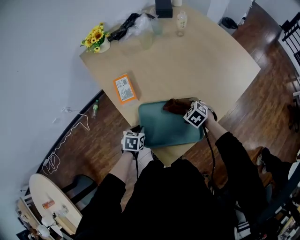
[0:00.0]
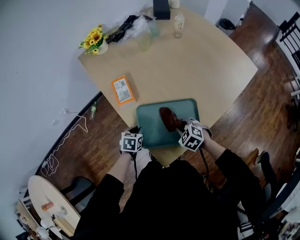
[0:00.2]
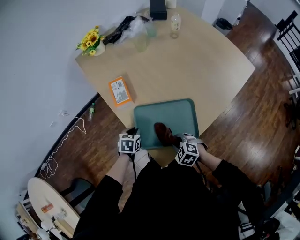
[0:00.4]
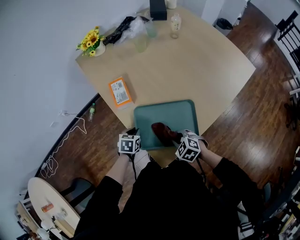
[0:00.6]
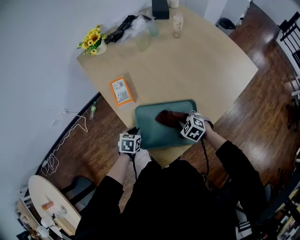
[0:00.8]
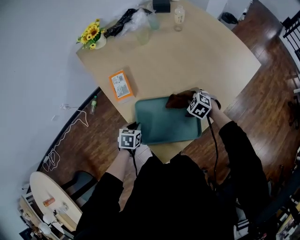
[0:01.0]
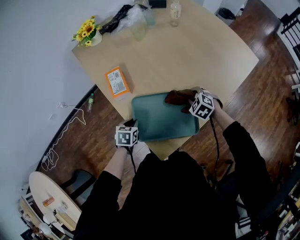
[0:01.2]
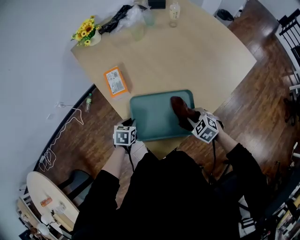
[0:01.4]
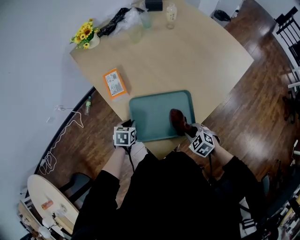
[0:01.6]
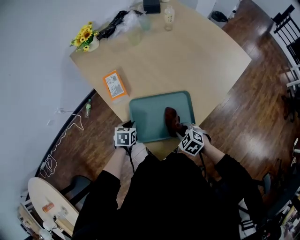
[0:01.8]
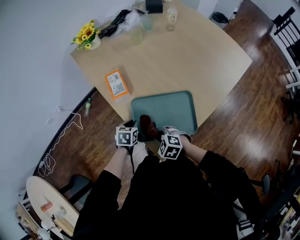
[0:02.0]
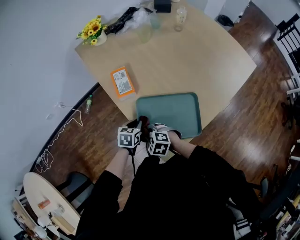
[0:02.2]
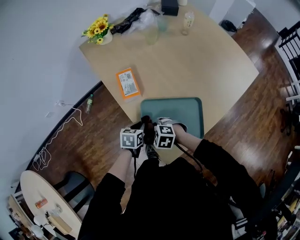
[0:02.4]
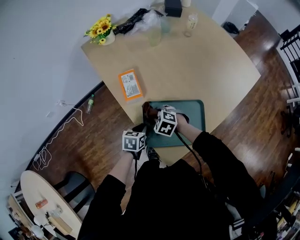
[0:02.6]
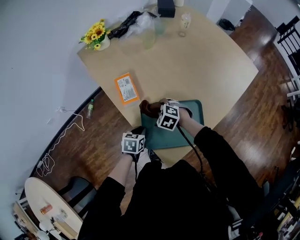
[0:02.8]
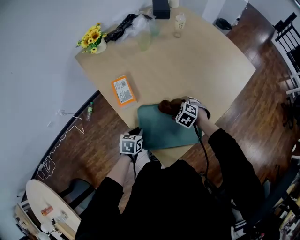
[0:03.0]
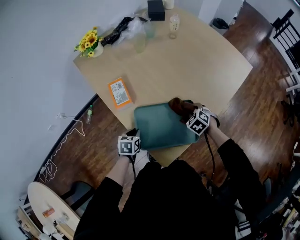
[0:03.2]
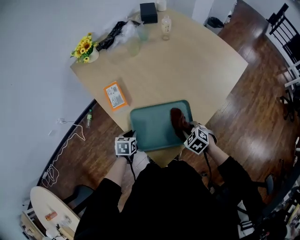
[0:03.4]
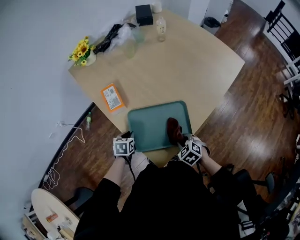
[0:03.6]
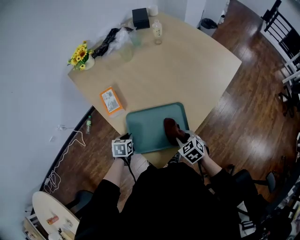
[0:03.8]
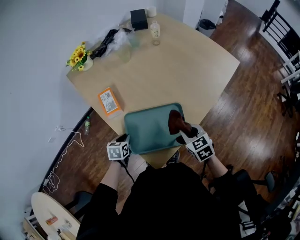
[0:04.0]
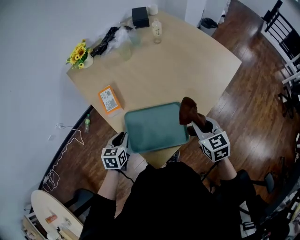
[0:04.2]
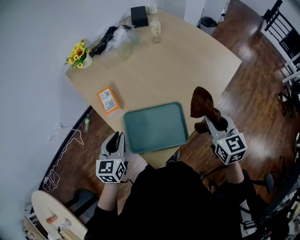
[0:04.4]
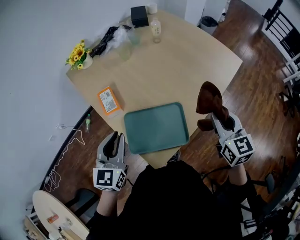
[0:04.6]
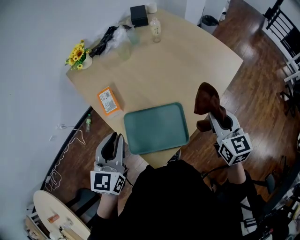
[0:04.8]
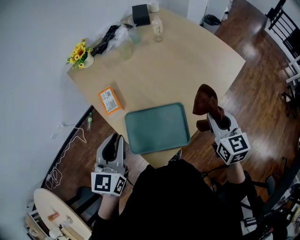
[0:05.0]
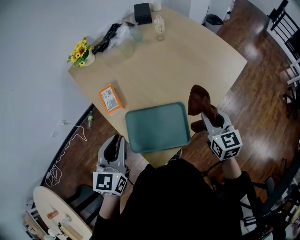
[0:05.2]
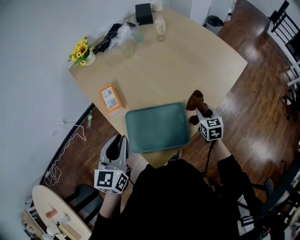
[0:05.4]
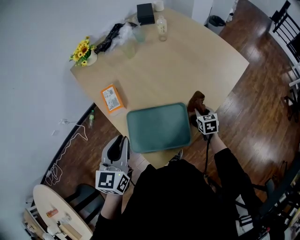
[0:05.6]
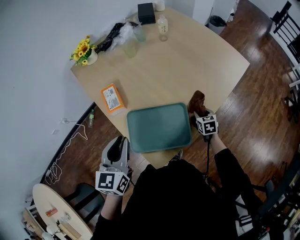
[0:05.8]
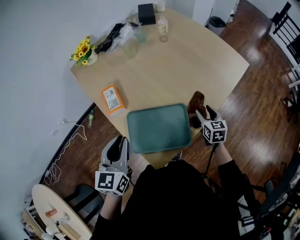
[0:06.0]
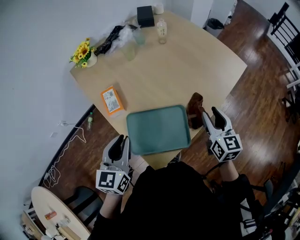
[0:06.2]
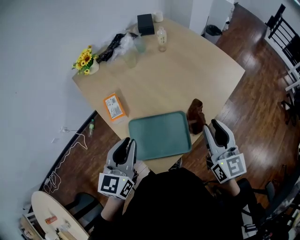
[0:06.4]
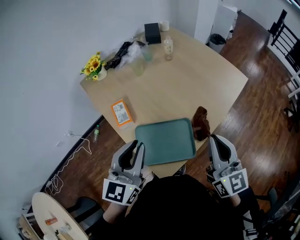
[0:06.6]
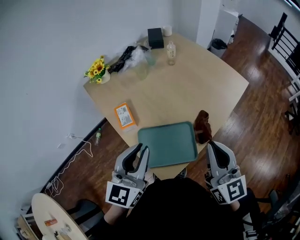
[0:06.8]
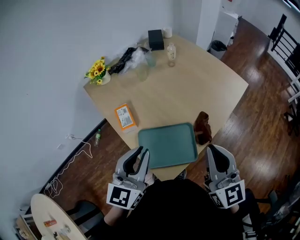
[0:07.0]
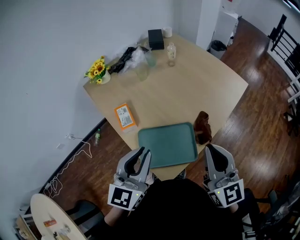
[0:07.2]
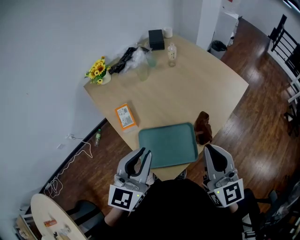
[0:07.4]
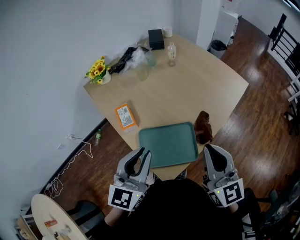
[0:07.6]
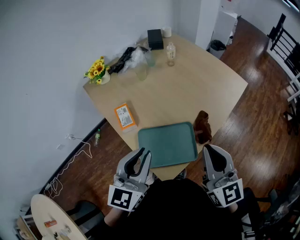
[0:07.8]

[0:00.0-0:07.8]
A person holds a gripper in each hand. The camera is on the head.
0:00.0 to 0:01.6: The right gripper moves forward and backward over roughly 20 cm, changing direction 2 times.
0:03.2 to 0:04.6: Both grippers move upward, some 30 cm. The left gripper points its fingers roughly 40 degrees further upward. The right gripper angles its fingers upward, by about 40 degrees.
0:04.6 to 0:06.2: The right gripper travels downward and back again, roughly 30 cm each way, and opens.
0:06.2 to 0:07.8: The right gripper is displaced upward, backward and to the left by some 20 cm, and closes up; the left gripper shifts about 10 cm upward.

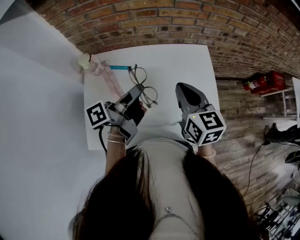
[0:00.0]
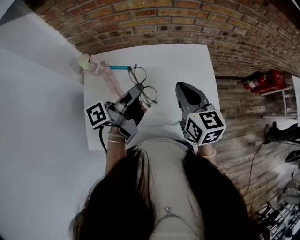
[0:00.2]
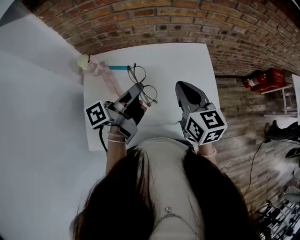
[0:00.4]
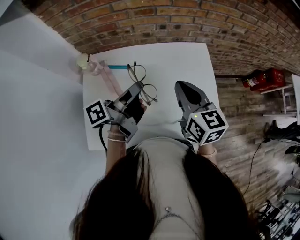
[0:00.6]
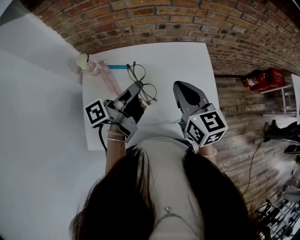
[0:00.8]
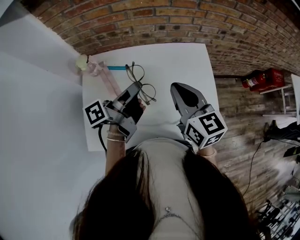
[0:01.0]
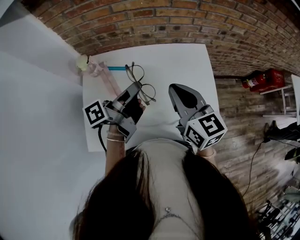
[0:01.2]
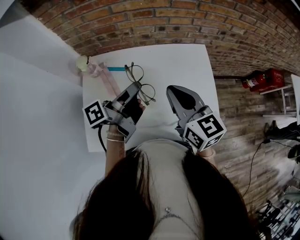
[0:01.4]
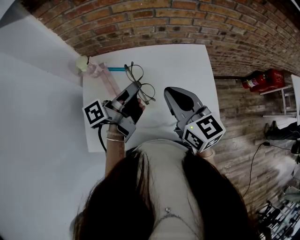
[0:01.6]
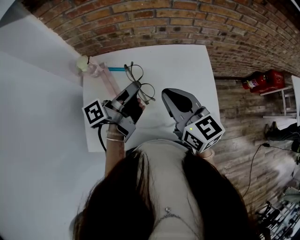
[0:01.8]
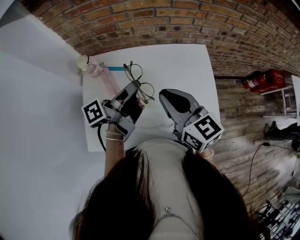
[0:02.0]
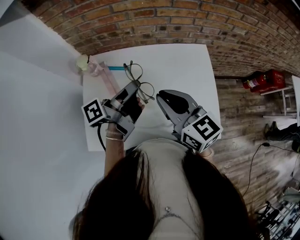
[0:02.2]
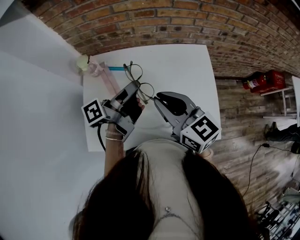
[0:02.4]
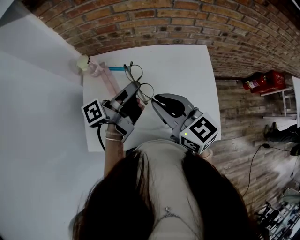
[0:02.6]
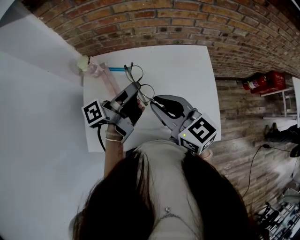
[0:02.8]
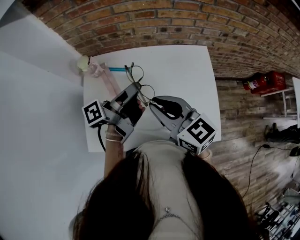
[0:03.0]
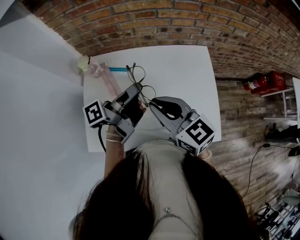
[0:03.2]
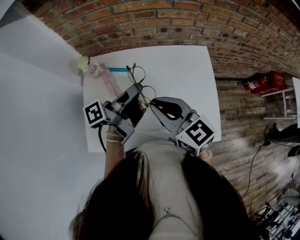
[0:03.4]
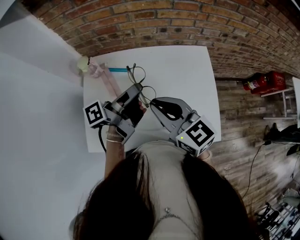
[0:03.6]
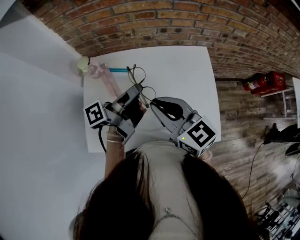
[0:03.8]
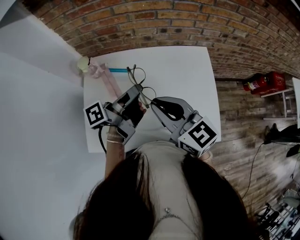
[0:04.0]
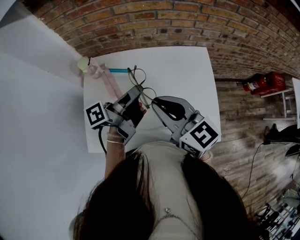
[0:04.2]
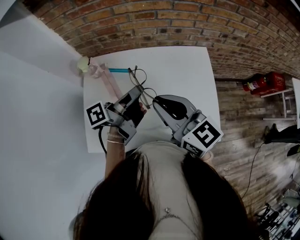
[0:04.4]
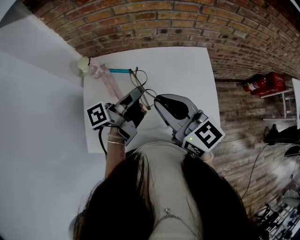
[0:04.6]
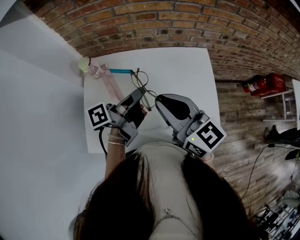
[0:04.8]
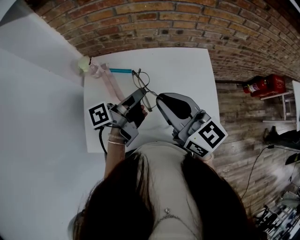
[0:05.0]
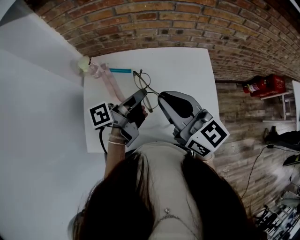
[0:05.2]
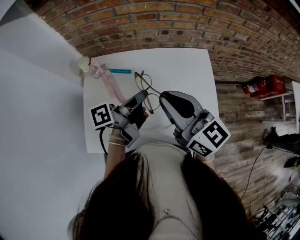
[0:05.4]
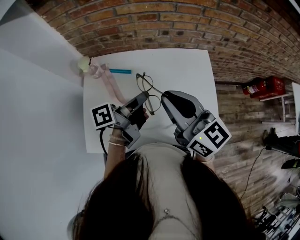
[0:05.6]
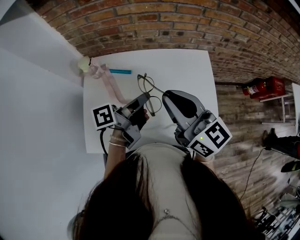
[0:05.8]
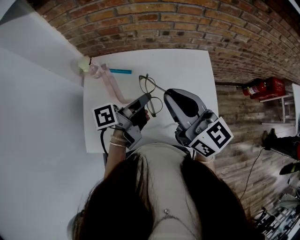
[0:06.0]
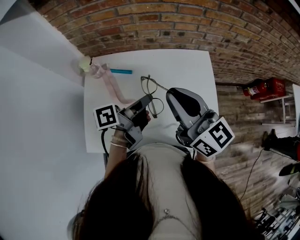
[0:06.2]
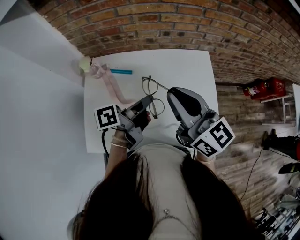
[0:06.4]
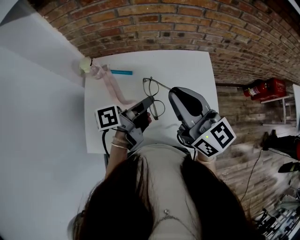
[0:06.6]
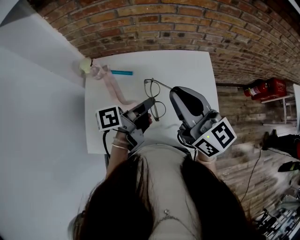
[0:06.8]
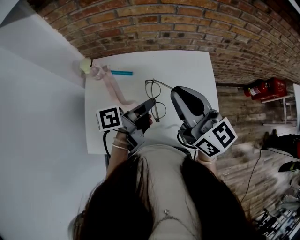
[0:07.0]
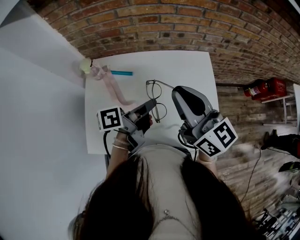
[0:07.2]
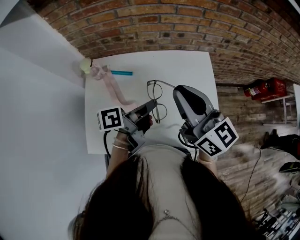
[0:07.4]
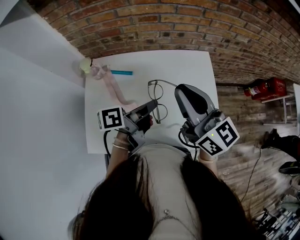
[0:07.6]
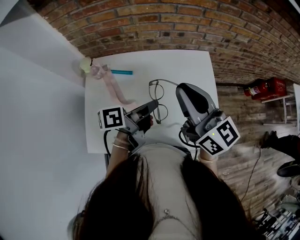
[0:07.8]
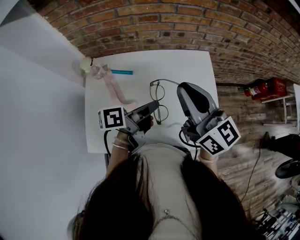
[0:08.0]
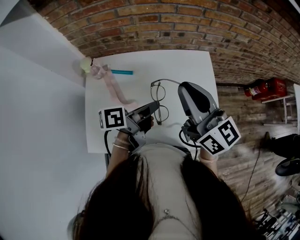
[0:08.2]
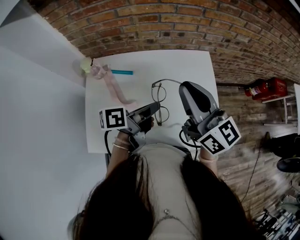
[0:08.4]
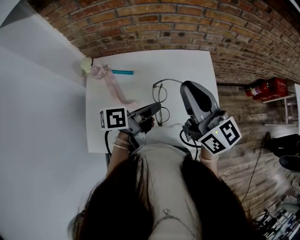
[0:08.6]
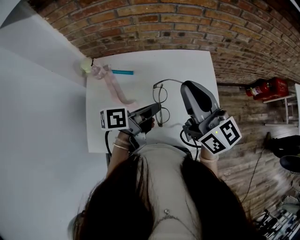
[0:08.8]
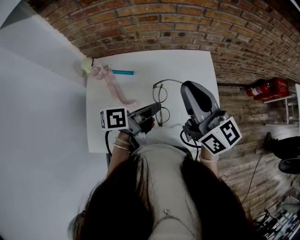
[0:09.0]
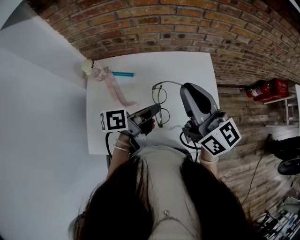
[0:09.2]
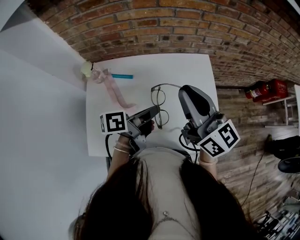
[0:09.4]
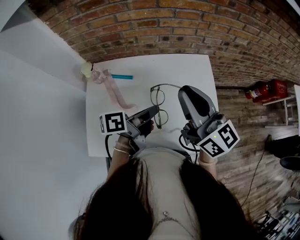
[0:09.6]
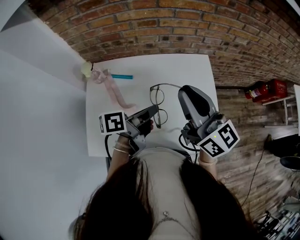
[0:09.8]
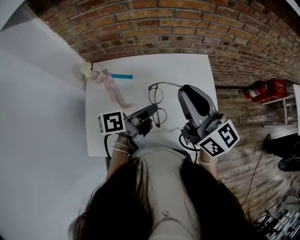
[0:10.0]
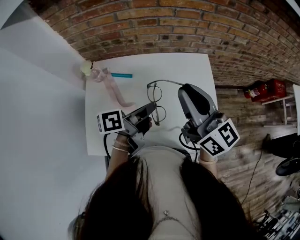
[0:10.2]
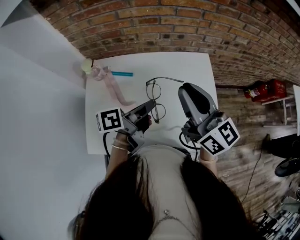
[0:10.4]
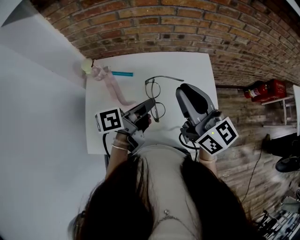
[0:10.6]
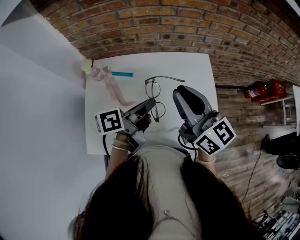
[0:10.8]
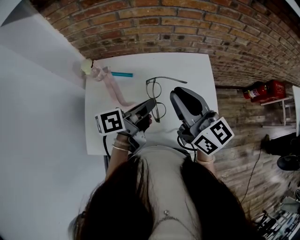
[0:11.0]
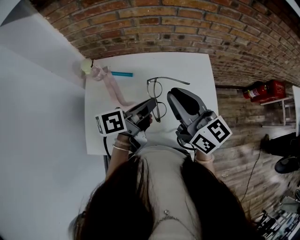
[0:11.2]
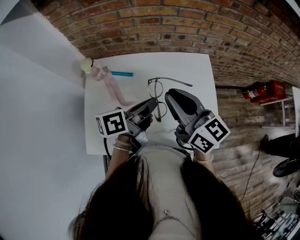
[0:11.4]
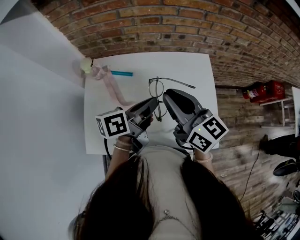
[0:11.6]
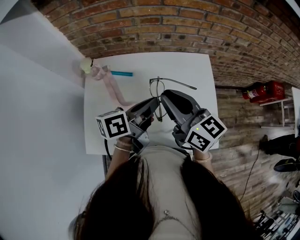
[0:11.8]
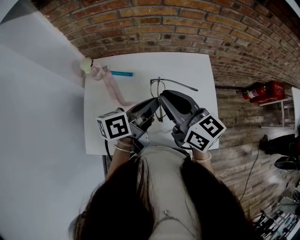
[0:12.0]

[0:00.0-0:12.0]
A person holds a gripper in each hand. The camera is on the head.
0:00.0 to 0:01.6: The right gripper shifts by some 5 cm.
0:01.6 to 0:03.0: The right gripper shifts by about 5 cm.
0:04.4 to 0:06.0: The right gripper moves approximately 5 cm.
0:10.4 to 0:12.0: The right gripper ends up roughly 10 cm from where it was.

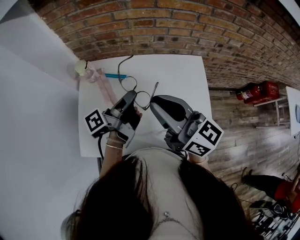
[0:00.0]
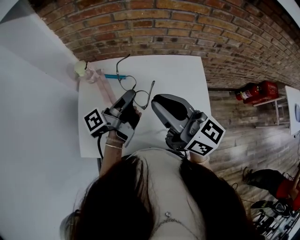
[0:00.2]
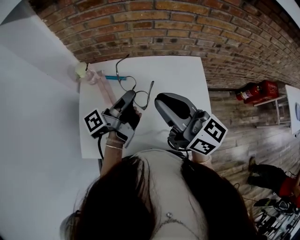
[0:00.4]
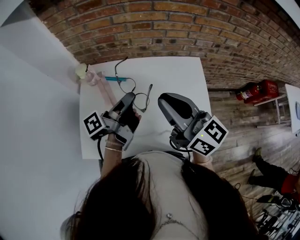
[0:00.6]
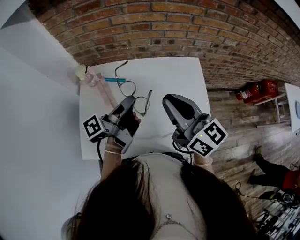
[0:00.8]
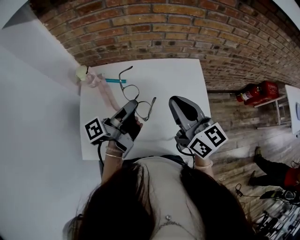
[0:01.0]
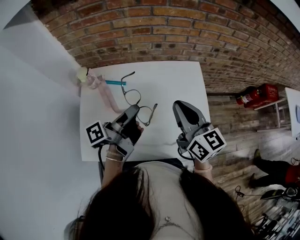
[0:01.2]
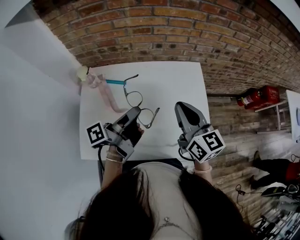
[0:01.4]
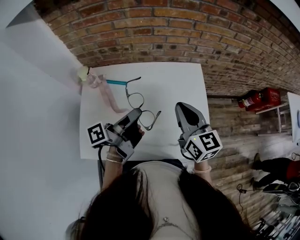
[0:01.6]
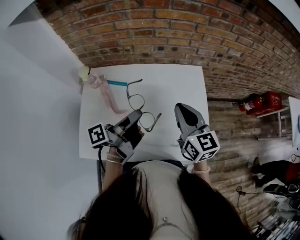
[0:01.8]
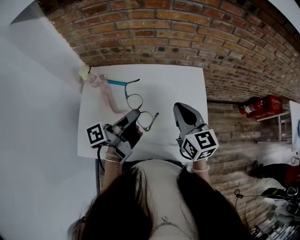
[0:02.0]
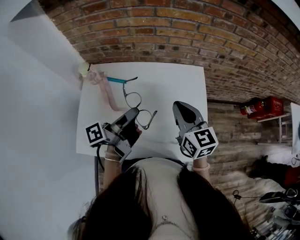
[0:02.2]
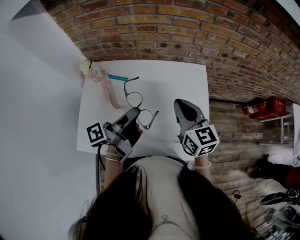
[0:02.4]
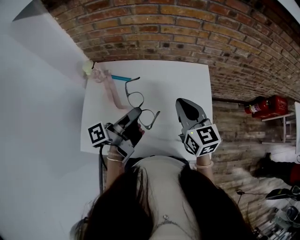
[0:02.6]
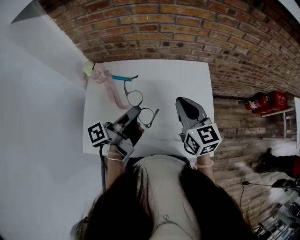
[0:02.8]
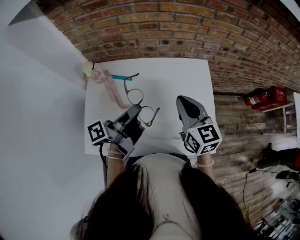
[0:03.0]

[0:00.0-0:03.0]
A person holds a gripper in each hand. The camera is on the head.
0:00.0 to 0:01.6: The right gripper moves roughly 15 cm, and rotates some 30 degrees.

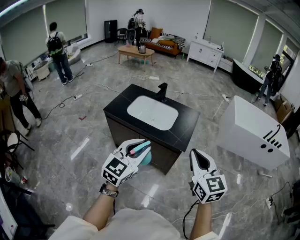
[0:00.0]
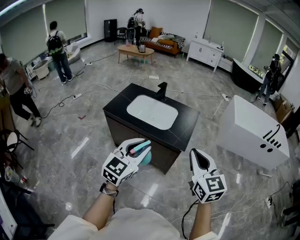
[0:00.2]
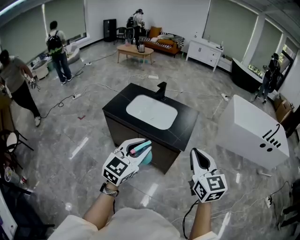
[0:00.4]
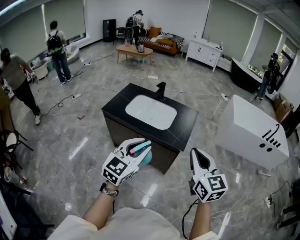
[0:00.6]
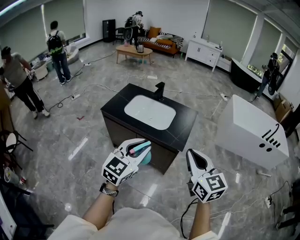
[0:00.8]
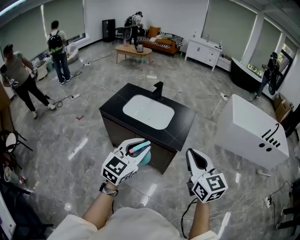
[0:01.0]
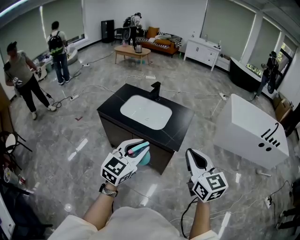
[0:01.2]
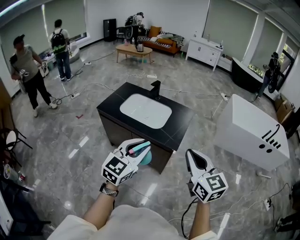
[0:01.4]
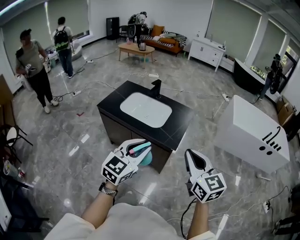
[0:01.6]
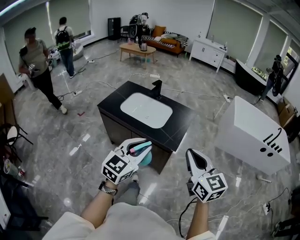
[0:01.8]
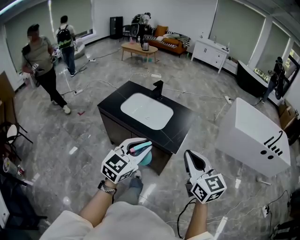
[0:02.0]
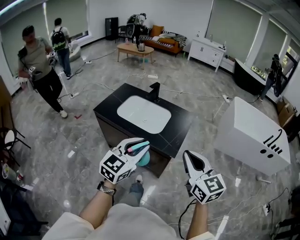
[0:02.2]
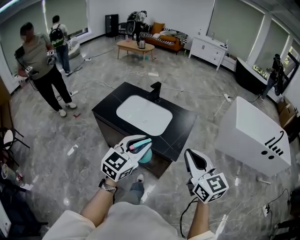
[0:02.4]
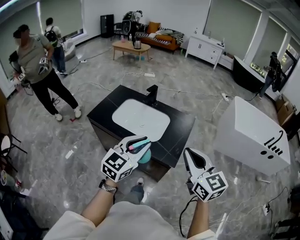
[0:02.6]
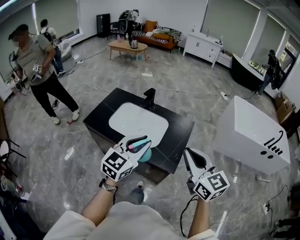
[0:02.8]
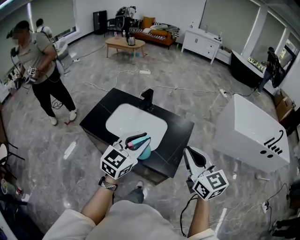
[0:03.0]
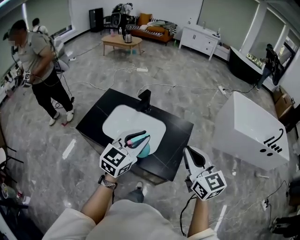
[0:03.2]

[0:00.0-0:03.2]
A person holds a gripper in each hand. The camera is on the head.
0:00.0 to 0:01.6: Both grippers travel together to the right, about 5 cm.
0:01.6 to 0:03.2: Both grippers travel together forward, about 30 cm.
